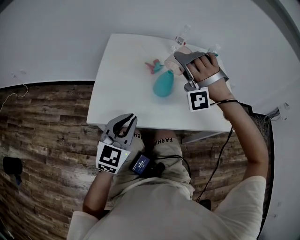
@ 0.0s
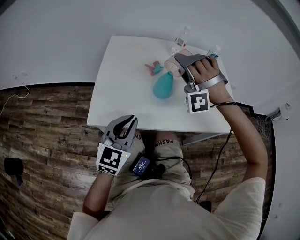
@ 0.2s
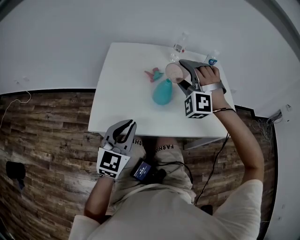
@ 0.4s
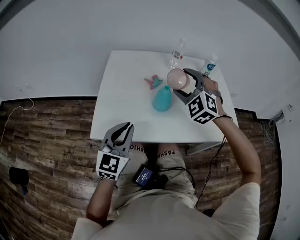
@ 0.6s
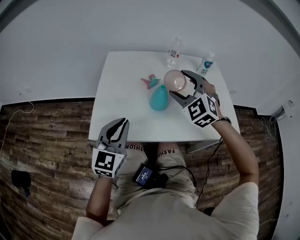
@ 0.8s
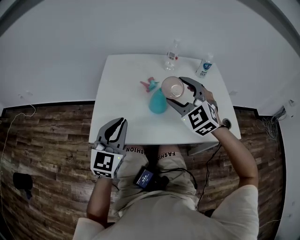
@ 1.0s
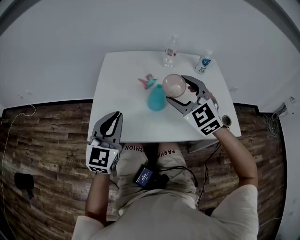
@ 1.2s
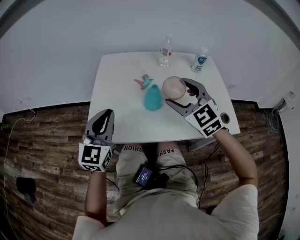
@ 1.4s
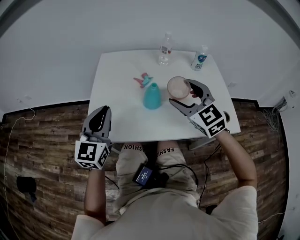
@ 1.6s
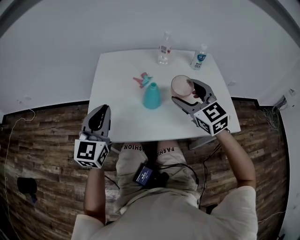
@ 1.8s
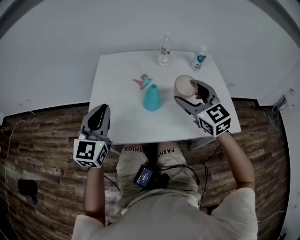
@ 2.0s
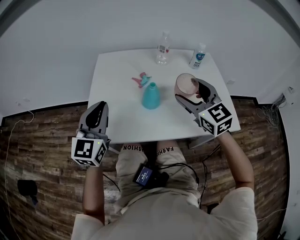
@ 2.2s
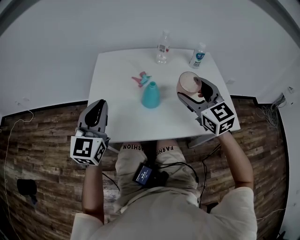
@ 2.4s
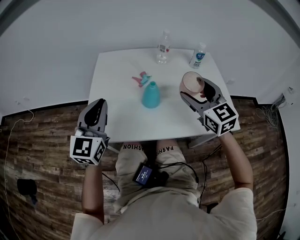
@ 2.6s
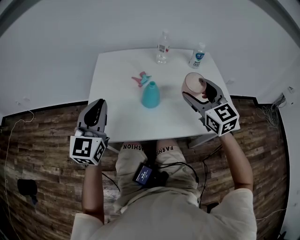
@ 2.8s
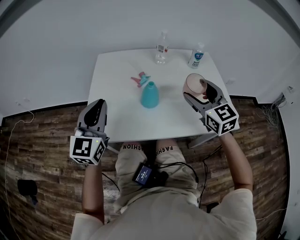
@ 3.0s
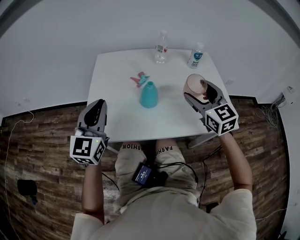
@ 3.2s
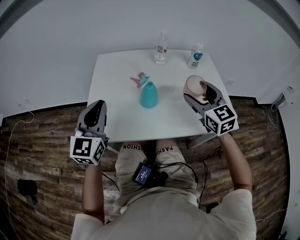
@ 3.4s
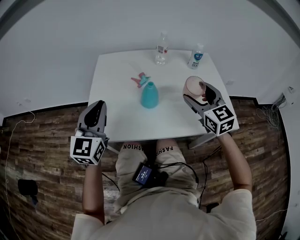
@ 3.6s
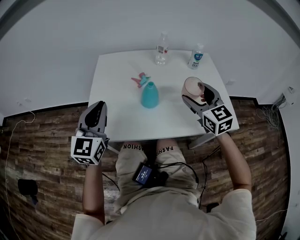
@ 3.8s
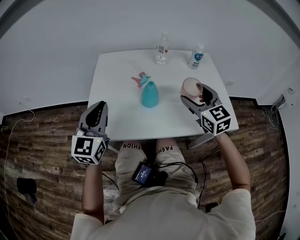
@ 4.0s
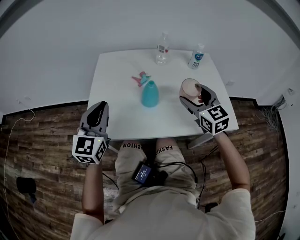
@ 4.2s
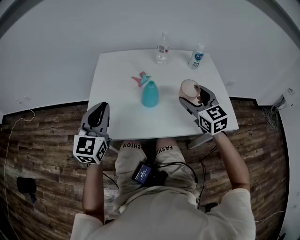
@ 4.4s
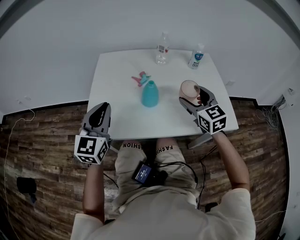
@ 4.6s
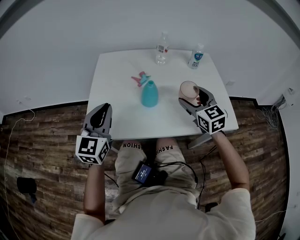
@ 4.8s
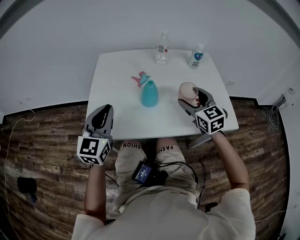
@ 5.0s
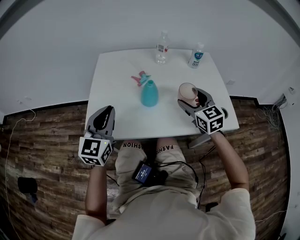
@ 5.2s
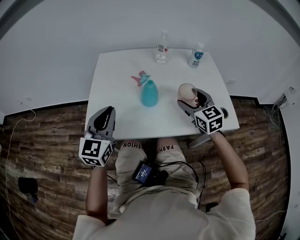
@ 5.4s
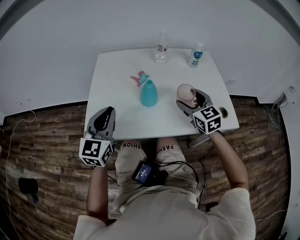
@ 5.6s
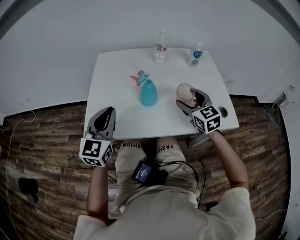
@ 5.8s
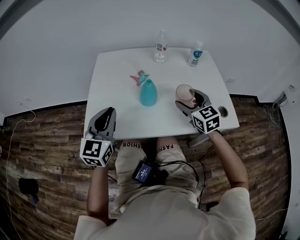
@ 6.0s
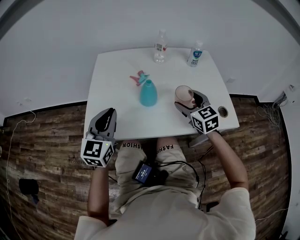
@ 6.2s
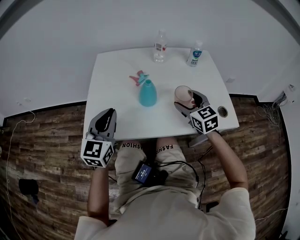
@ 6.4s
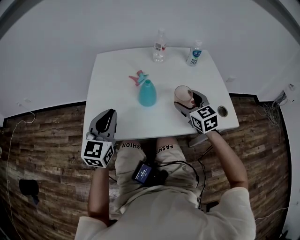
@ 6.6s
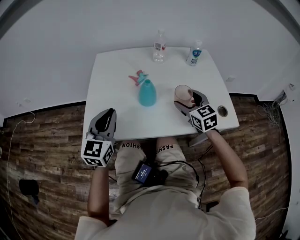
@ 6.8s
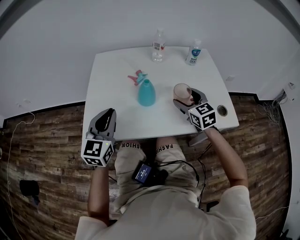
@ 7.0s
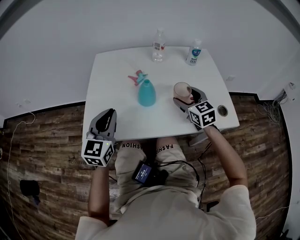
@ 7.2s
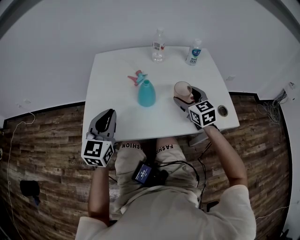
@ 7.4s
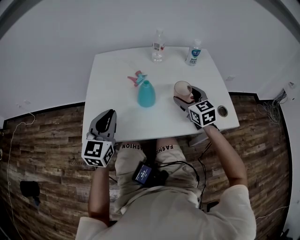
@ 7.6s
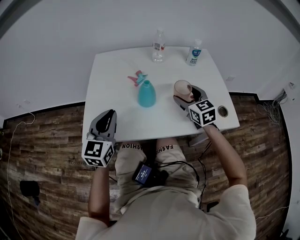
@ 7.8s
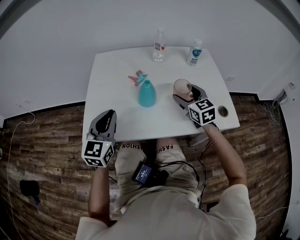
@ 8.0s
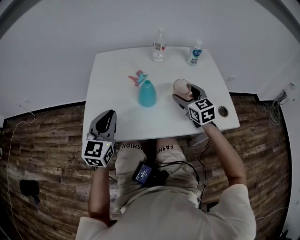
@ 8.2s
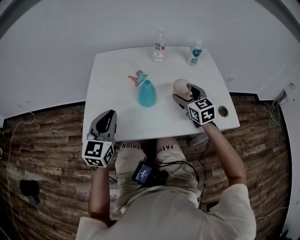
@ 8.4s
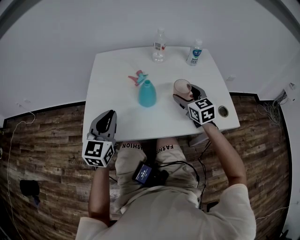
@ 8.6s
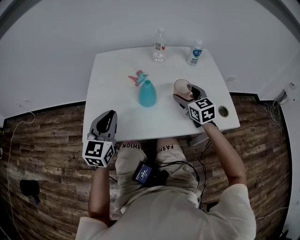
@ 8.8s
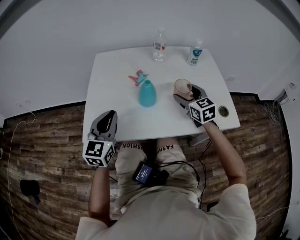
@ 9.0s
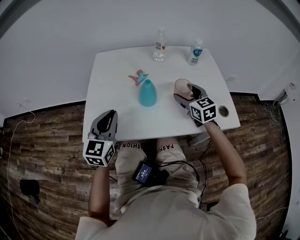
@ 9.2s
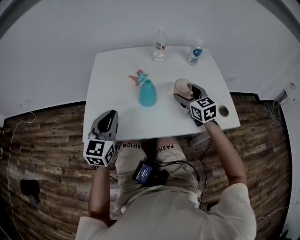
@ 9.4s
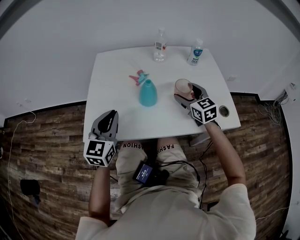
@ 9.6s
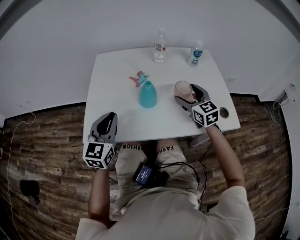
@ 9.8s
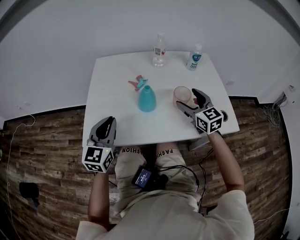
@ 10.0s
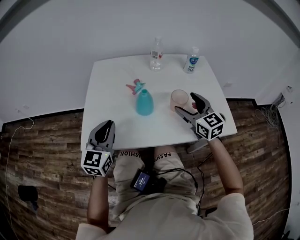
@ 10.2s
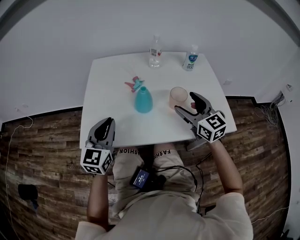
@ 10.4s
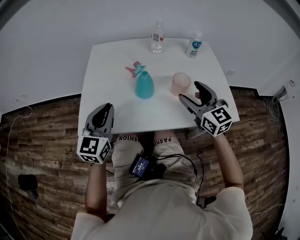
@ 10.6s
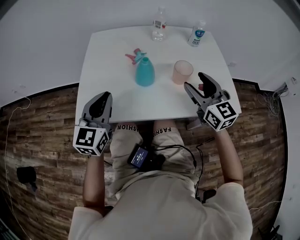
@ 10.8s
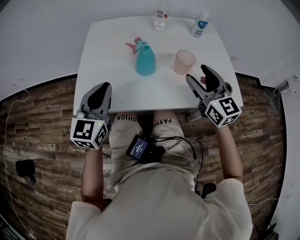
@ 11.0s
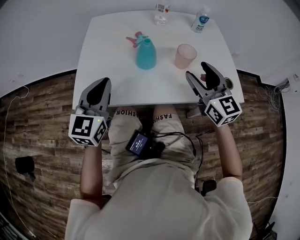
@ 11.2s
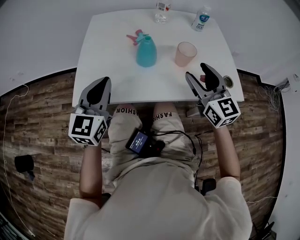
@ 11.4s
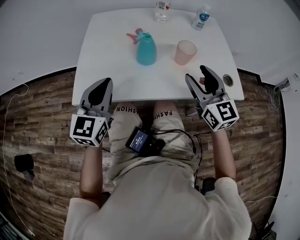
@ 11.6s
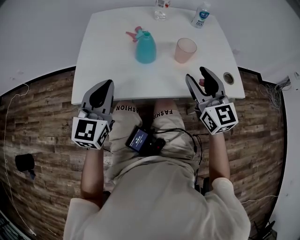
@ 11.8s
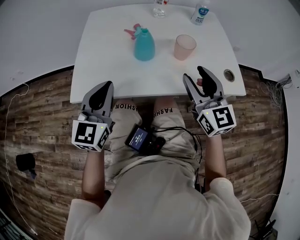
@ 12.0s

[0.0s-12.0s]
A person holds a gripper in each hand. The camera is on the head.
0.0s to 1.6s: The left gripper is displaced upward and forward by about 10 cm. Meanwhile the right gripper heads to the right and backward, covering approximately 10 cm, and rolls clockwise, seen from behind, by about 90 degrees.
1.6s to 3.0s: The right gripper is displaced to the right by roughly 5 cm.
3.0s to 4.4s: The grippers move only a little.
4.4s to 6.0s: The right gripper shifts about 5 cm downward.
6.0s to 7.6s: The grippers make only small movements.
7.6s to 9.0s: Both grippers stay about where they are.
9.0s to 10.4s: The right gripper goes roughly 10 cm upward and backward.
10.4s to 12.0s: The left gripper travels backward by approximately 5 cm, while the right gripper moves backward, roughly 10 cm, and closes its fingers.

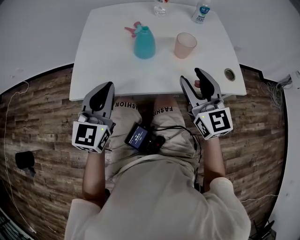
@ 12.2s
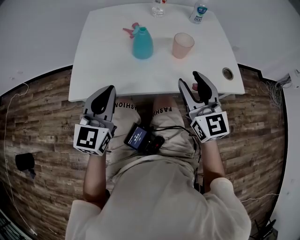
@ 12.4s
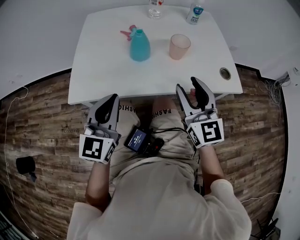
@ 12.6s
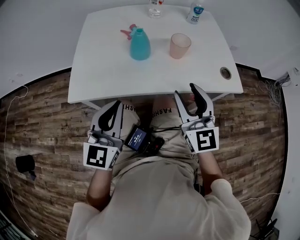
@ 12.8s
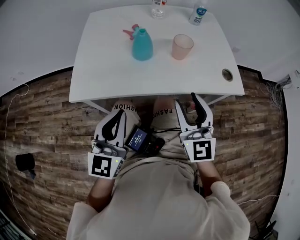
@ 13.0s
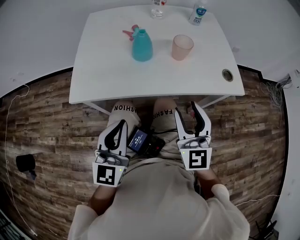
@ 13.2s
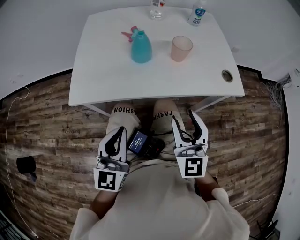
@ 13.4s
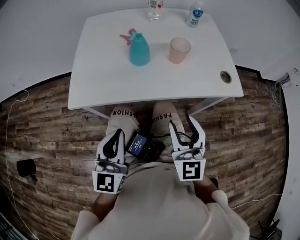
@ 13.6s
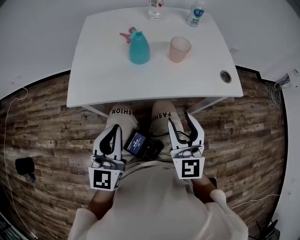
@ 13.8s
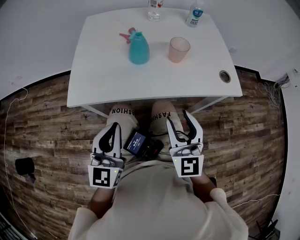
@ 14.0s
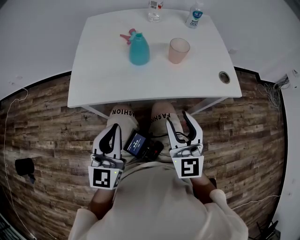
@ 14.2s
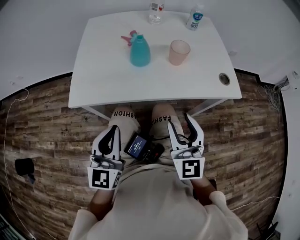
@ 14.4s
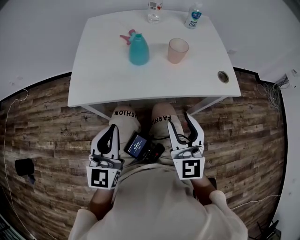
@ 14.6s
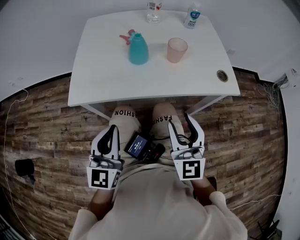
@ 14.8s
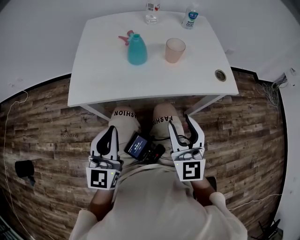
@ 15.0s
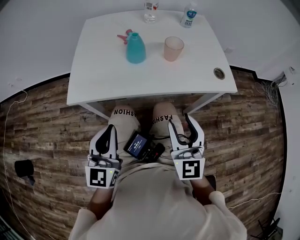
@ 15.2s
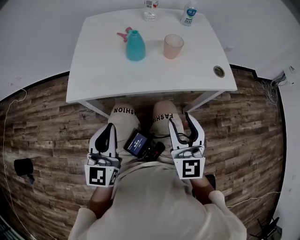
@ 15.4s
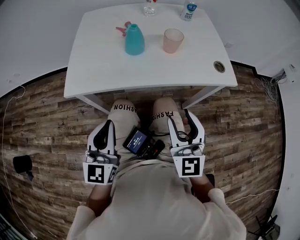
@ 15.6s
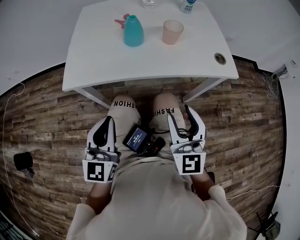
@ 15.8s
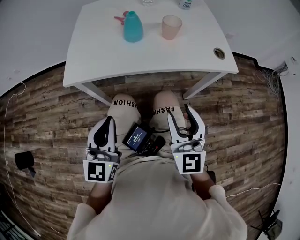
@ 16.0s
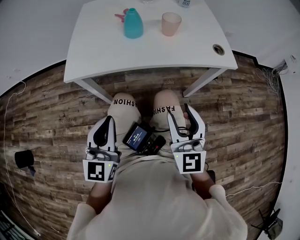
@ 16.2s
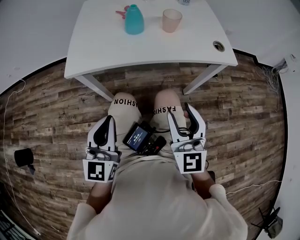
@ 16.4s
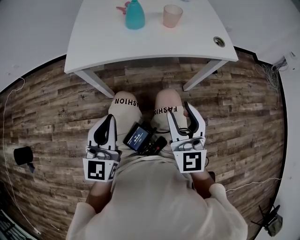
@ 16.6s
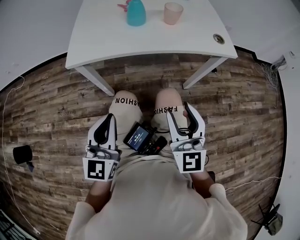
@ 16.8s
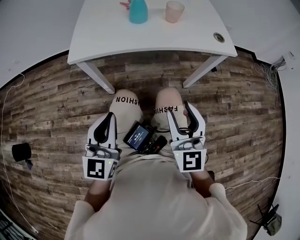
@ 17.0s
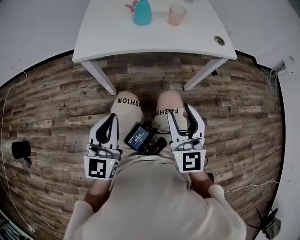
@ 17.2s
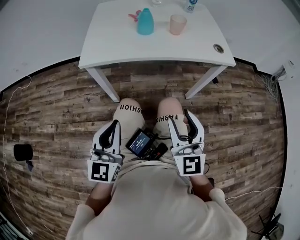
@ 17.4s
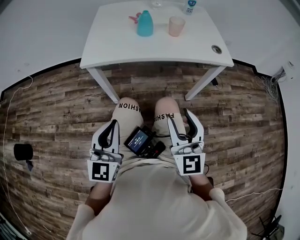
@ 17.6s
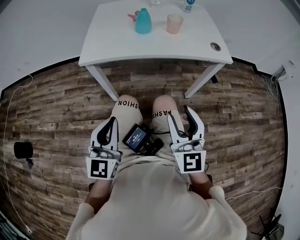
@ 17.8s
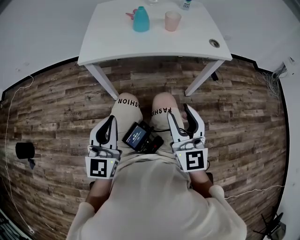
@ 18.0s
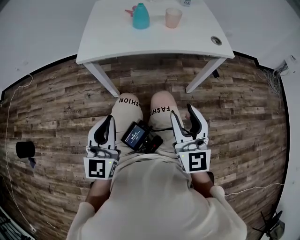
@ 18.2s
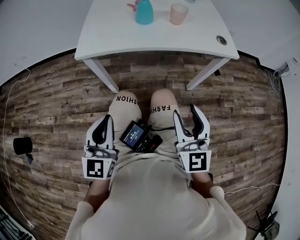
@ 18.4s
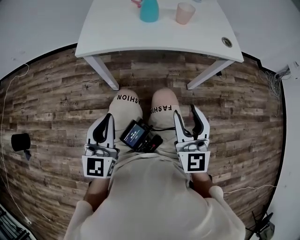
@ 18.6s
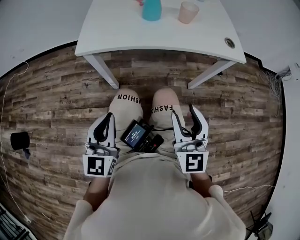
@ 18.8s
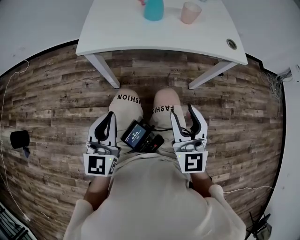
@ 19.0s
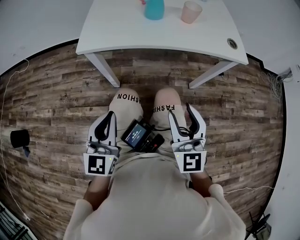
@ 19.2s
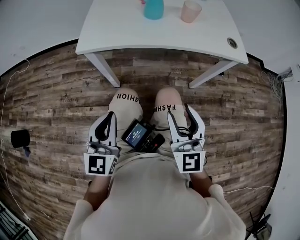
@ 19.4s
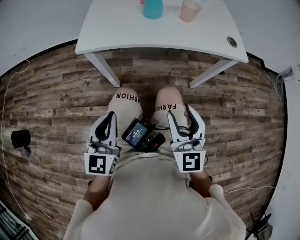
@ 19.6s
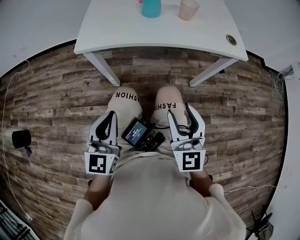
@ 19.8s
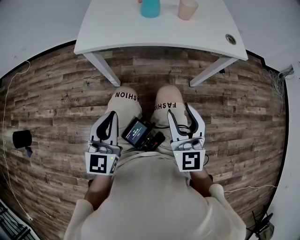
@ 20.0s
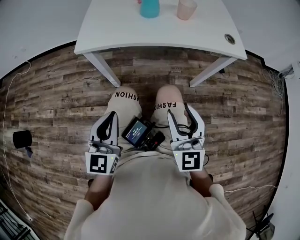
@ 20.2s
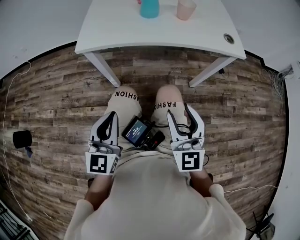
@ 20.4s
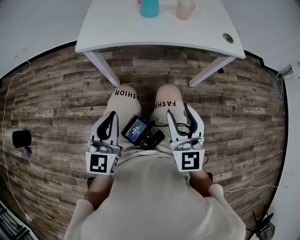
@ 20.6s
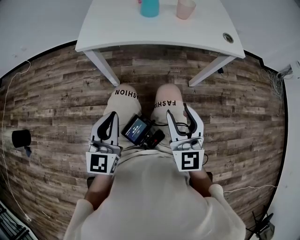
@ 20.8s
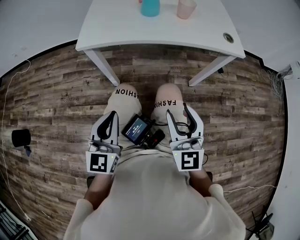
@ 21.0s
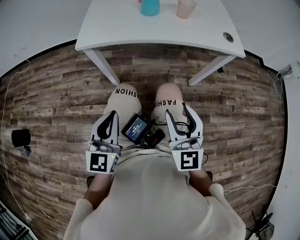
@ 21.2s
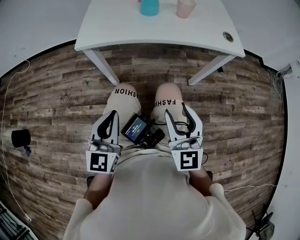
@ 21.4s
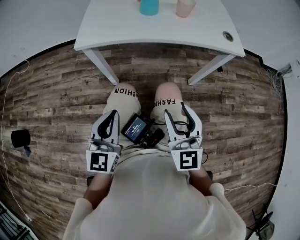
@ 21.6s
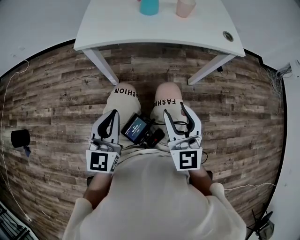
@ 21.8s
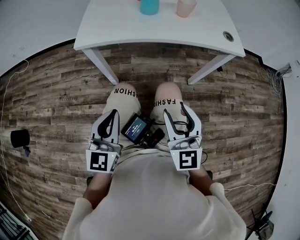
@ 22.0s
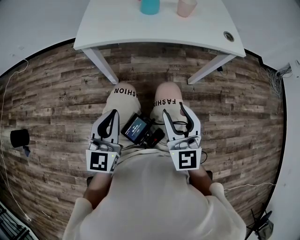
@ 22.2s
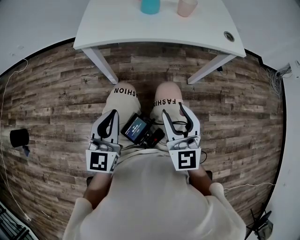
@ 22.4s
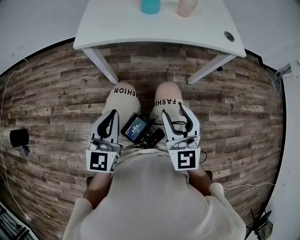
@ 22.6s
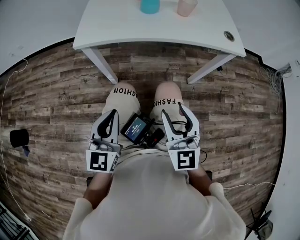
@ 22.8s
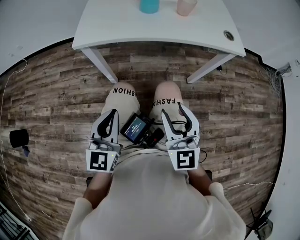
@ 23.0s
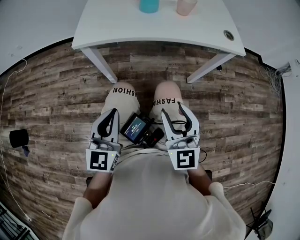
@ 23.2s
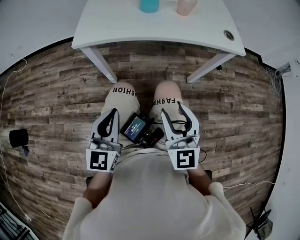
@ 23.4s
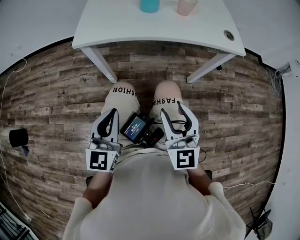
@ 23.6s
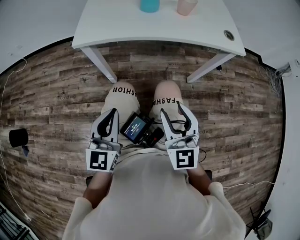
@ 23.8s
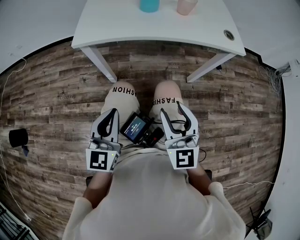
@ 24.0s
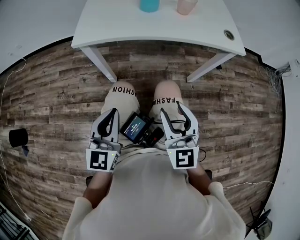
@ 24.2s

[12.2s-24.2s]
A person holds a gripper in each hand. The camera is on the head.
12.2s to 13.8s: The two grippers go some 10 cm backward.
13.8s to 15.2s: The grippers move only a little.
15.2s to 16.6s: Both grippers move backward, about 10 cm.
16.6s to 18.2s: The two grippers go approximately 5 cm backward.
18.2s to 19.8s: The right gripper moves about 5 cm. The left gripper is displaced downward by some 5 cm.
19.8s to 22.6s: There are only small adjustments of the grippers.
22.6s to 24.2s: Both grippers stay put.
